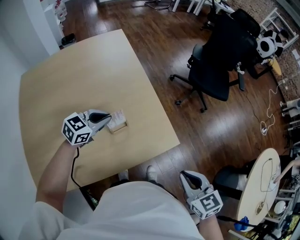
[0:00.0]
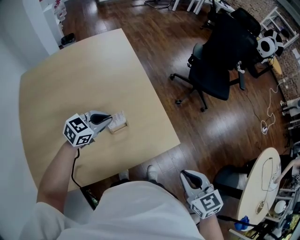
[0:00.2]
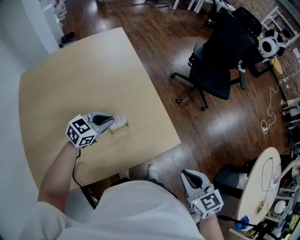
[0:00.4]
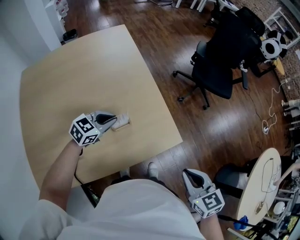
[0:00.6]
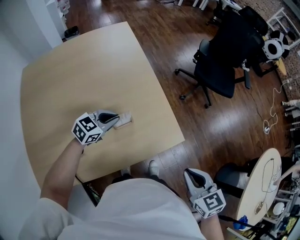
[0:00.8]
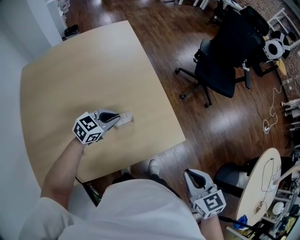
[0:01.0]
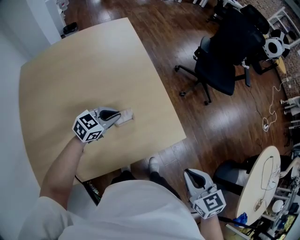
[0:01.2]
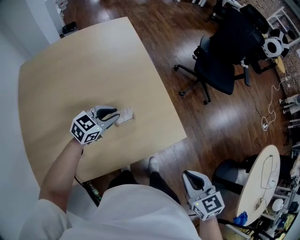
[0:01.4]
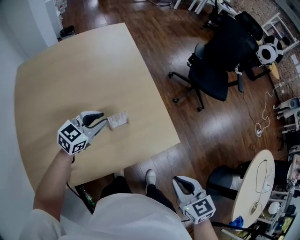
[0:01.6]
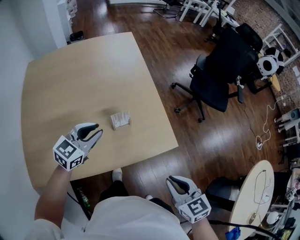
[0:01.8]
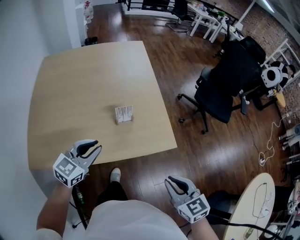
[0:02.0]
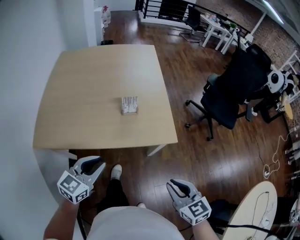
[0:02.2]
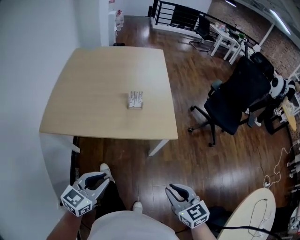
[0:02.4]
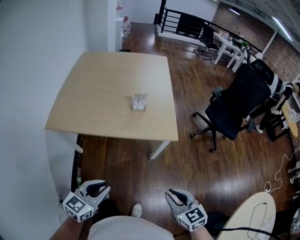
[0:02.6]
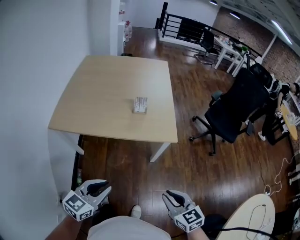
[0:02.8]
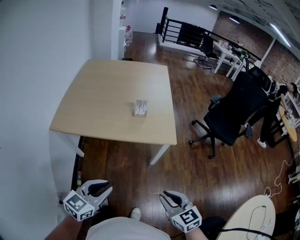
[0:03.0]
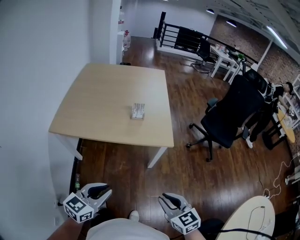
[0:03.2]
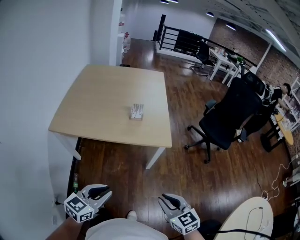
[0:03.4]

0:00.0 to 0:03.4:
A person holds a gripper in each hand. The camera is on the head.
0:00.0 to 0:01.6: The grippers stay close to where they were, moving slightly.
0:01.6 to 0:03.4: The right gripper moves approximately 30 cm, and changes its angle by about 30 degrees; the left gripper moves roughly 60 cm, and swivels about 30 degrees.

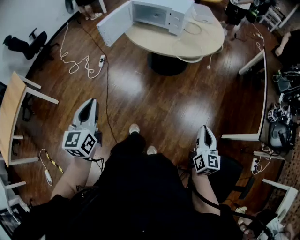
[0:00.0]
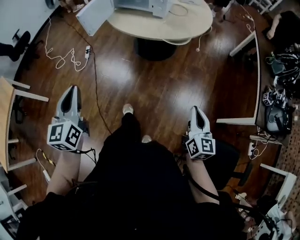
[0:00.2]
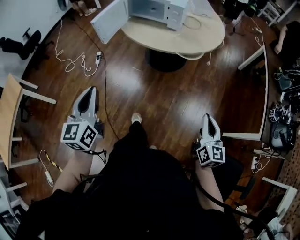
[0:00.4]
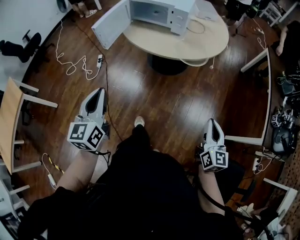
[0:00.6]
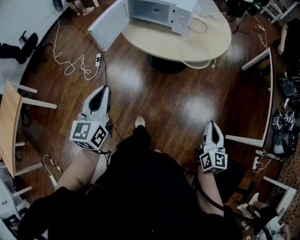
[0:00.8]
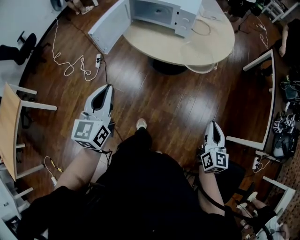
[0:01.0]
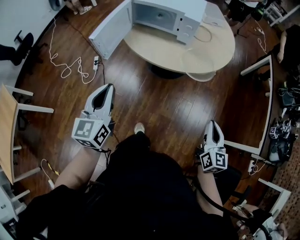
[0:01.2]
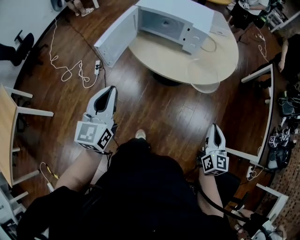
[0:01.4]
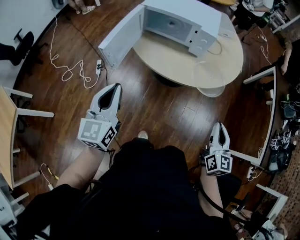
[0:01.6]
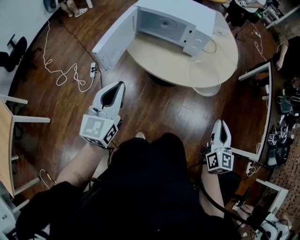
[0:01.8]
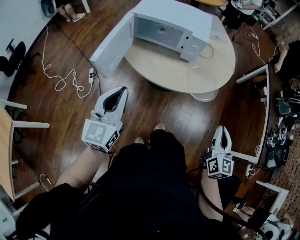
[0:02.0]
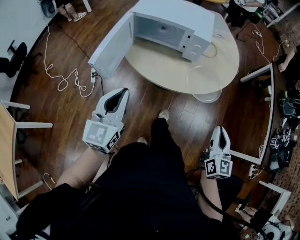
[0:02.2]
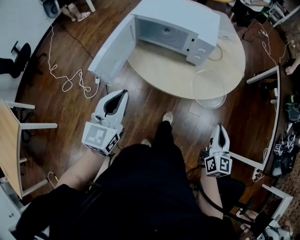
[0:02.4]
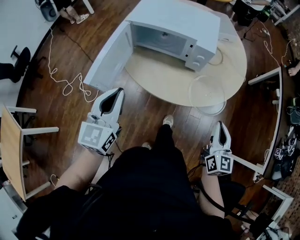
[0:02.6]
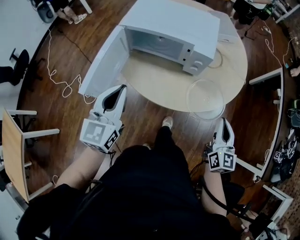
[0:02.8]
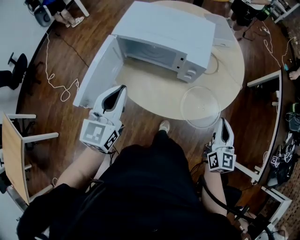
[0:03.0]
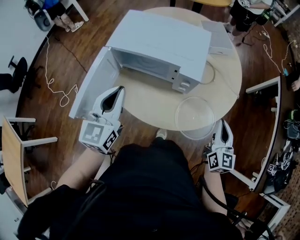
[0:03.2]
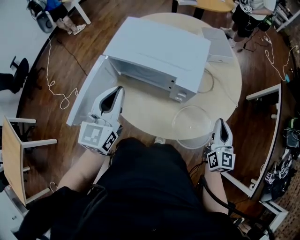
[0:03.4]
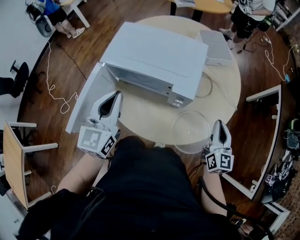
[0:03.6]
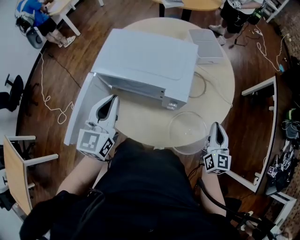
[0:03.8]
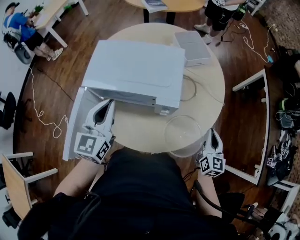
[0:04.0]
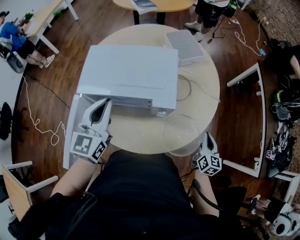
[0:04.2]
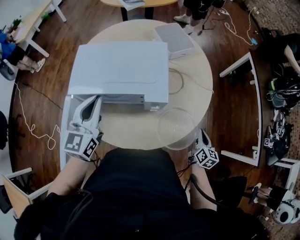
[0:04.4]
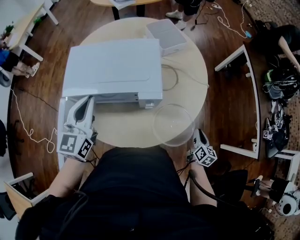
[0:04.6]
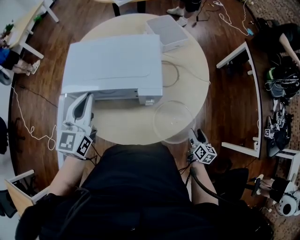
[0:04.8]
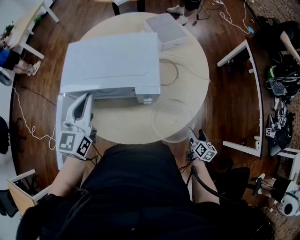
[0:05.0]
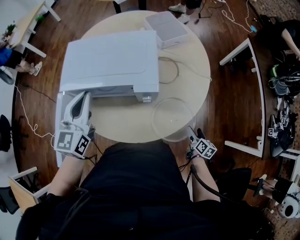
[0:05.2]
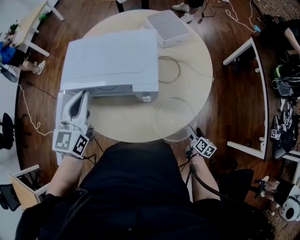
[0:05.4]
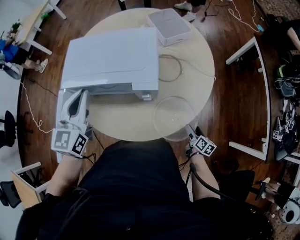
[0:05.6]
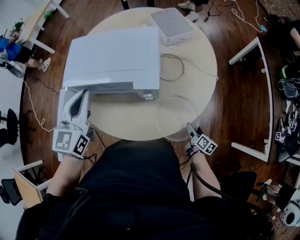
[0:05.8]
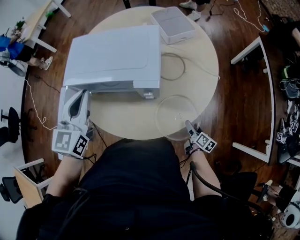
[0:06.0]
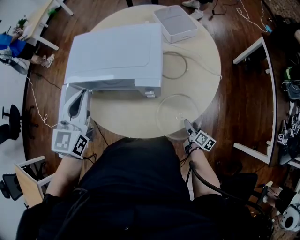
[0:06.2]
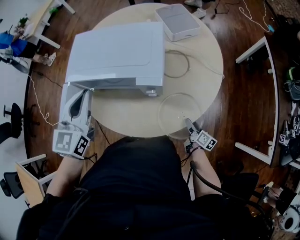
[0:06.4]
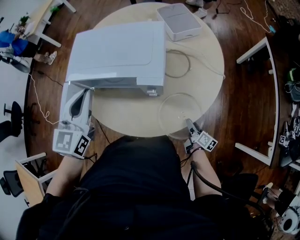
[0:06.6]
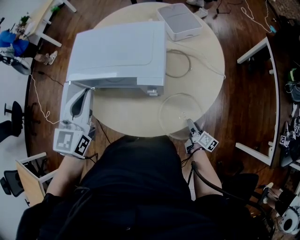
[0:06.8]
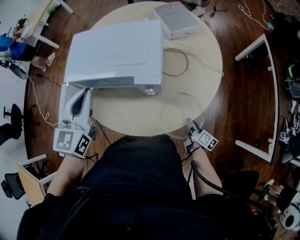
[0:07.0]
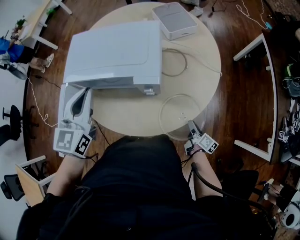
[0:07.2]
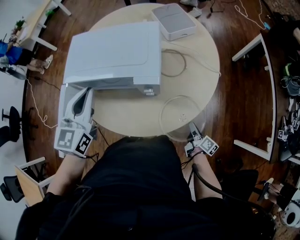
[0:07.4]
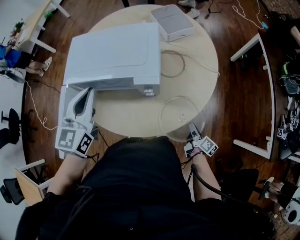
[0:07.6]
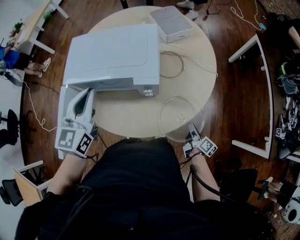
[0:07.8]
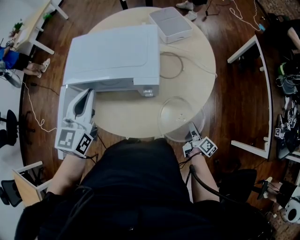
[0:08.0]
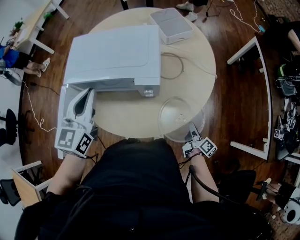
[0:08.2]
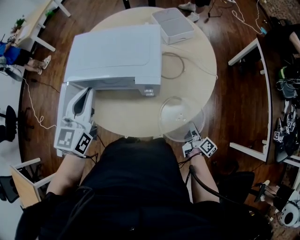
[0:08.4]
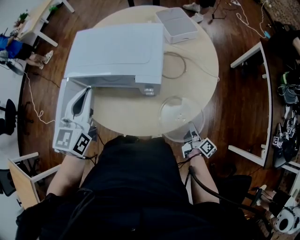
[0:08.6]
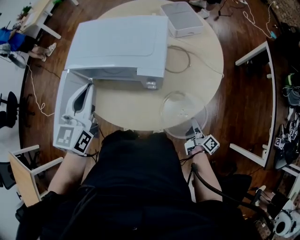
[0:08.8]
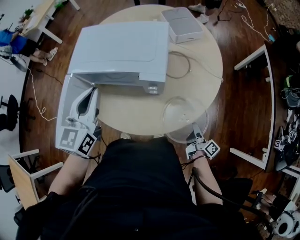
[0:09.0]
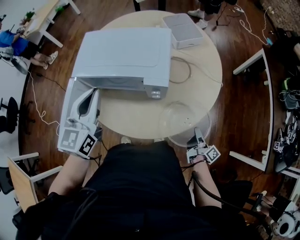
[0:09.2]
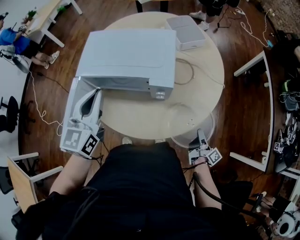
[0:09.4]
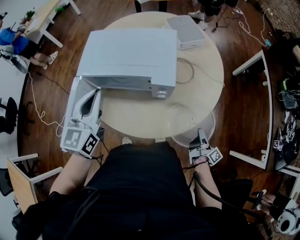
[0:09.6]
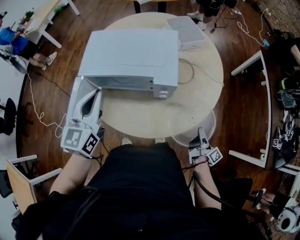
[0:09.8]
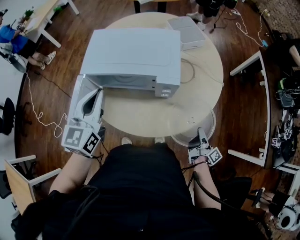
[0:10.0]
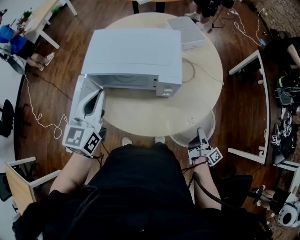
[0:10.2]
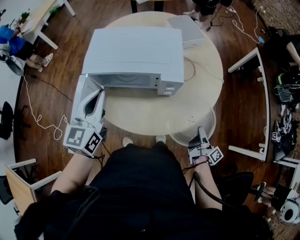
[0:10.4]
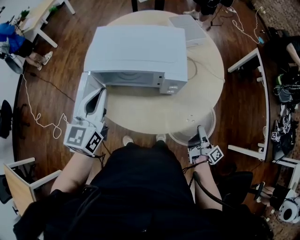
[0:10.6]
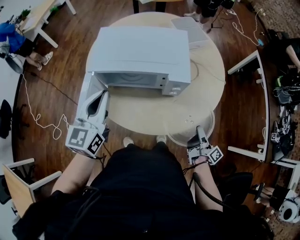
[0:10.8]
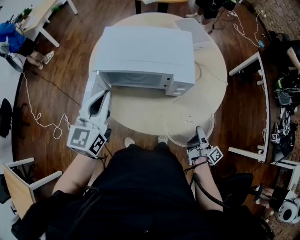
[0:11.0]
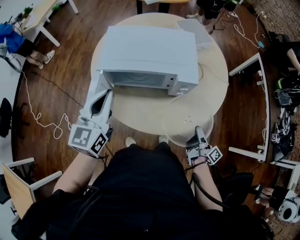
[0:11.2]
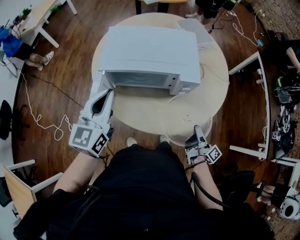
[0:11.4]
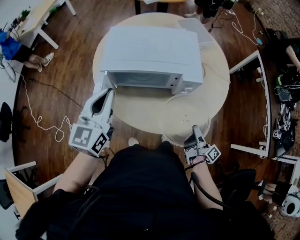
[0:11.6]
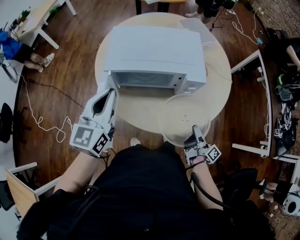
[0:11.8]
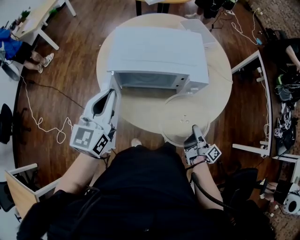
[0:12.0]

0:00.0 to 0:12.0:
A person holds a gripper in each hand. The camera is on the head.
0:00.0 to 0:01.6: The right gripper moves forward and to the left, some 30 cm; the left gripper goes about 30 cm forward.
0:01.6 to 0:03.0: The two grippers go approximately 20 cm forward.
0:03.0 to 0:04.4: The right gripper heads downward and to the right, covering some 15 cm, and turns by approximately 30 degrees; the left gripper goes roughly 15 cm forward.
0:04.4 to 0:06.0: The right gripper goes roughly 15 cm downward, turns by approximately 30 degrees, and opens up.
0:06.0 to 0:07.6: The right gripper closes its fingers.
0:07.6 to 0:09.0: There are only small adjustments of the grippers.
0:09.0 to 0:10.4: The left gripper heads to the left, covering some 5 cm. The right gripper heads upward, covering about 5 cm.
0:10.4 to 0:12.0: The right gripper shifts about 15 cm to the left, while the left gripper shifts approximately 5 cm to the left.

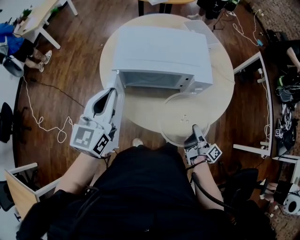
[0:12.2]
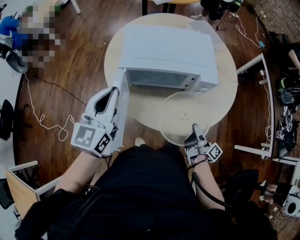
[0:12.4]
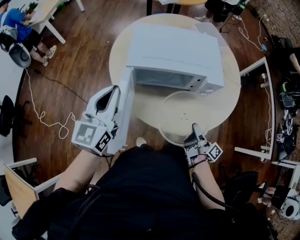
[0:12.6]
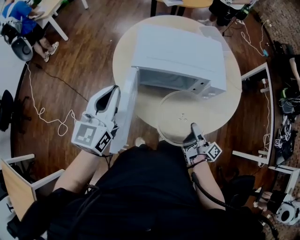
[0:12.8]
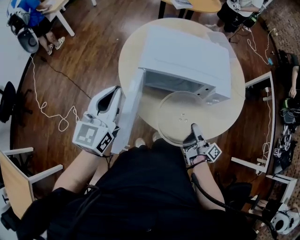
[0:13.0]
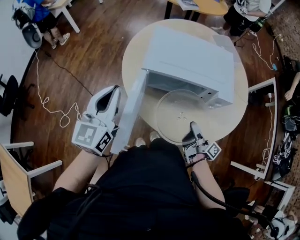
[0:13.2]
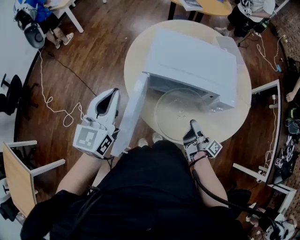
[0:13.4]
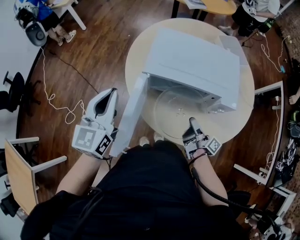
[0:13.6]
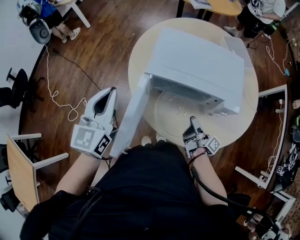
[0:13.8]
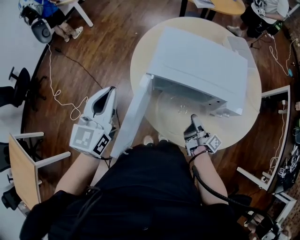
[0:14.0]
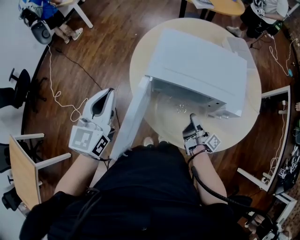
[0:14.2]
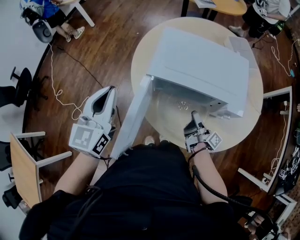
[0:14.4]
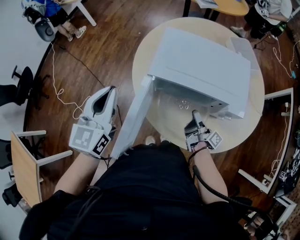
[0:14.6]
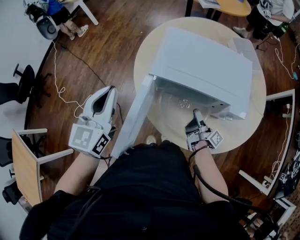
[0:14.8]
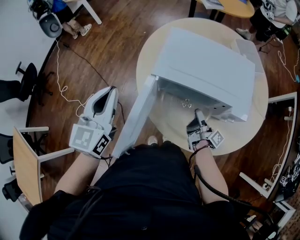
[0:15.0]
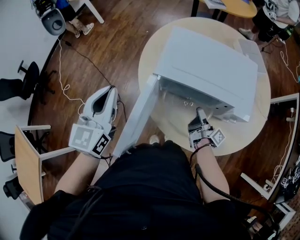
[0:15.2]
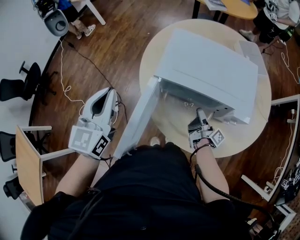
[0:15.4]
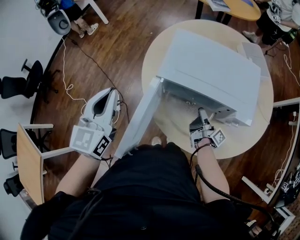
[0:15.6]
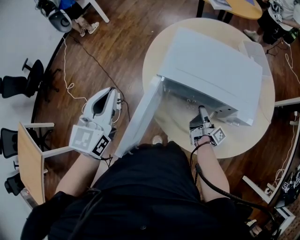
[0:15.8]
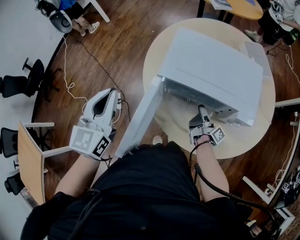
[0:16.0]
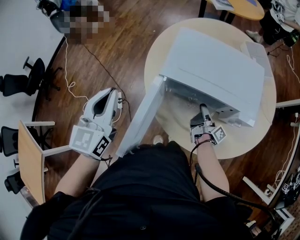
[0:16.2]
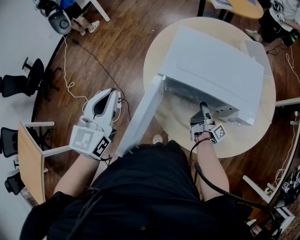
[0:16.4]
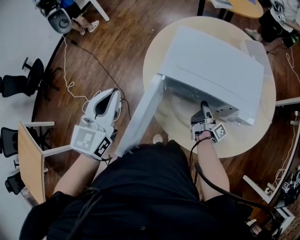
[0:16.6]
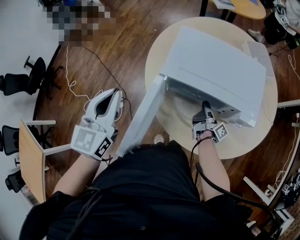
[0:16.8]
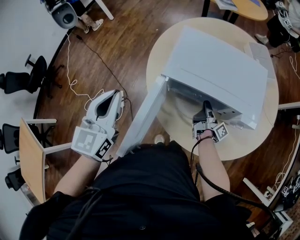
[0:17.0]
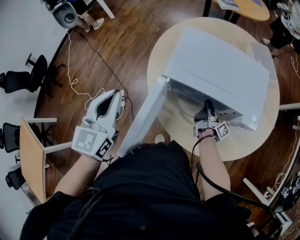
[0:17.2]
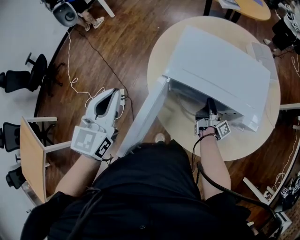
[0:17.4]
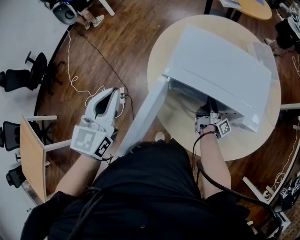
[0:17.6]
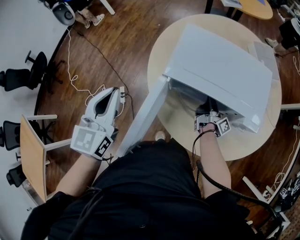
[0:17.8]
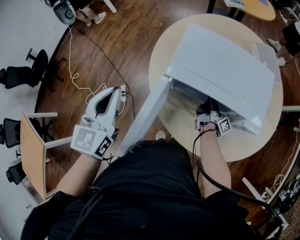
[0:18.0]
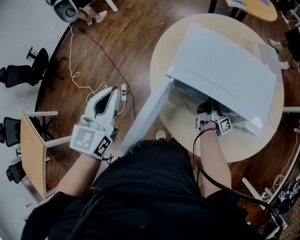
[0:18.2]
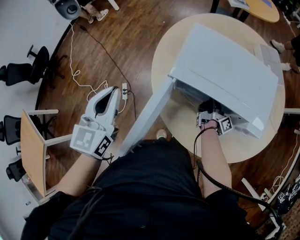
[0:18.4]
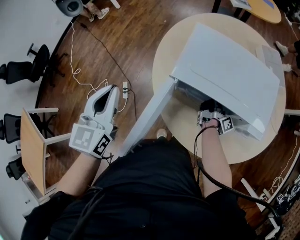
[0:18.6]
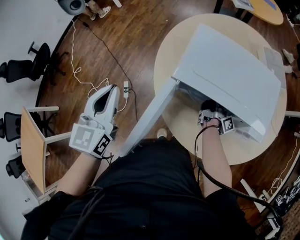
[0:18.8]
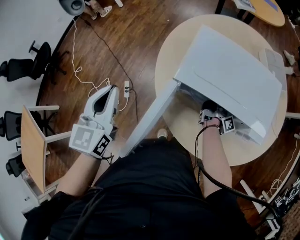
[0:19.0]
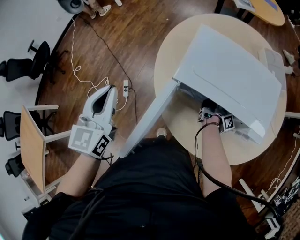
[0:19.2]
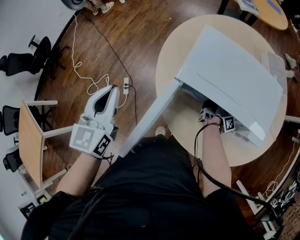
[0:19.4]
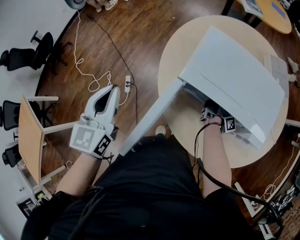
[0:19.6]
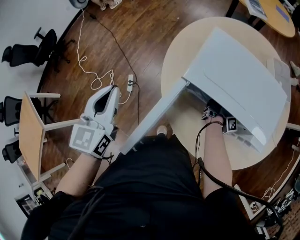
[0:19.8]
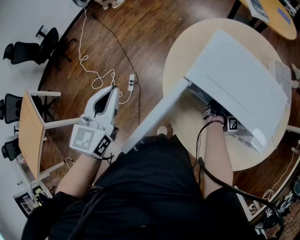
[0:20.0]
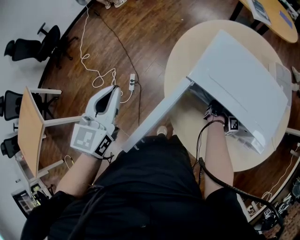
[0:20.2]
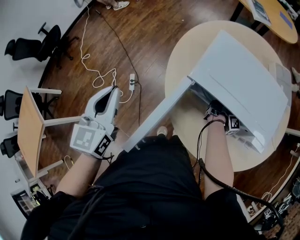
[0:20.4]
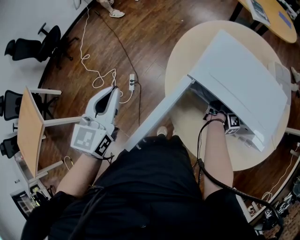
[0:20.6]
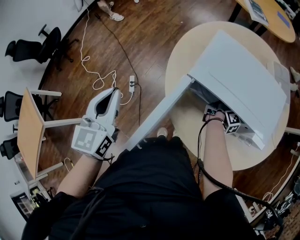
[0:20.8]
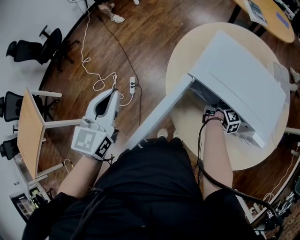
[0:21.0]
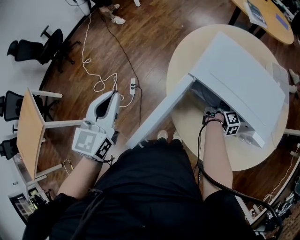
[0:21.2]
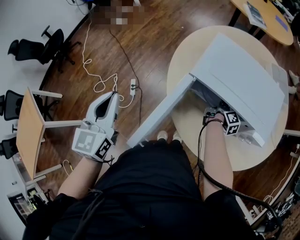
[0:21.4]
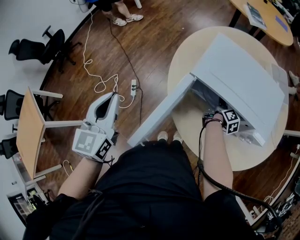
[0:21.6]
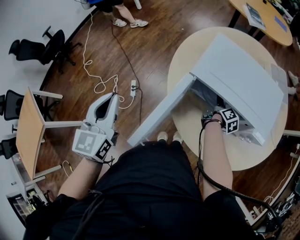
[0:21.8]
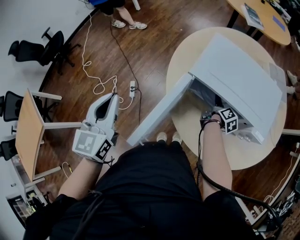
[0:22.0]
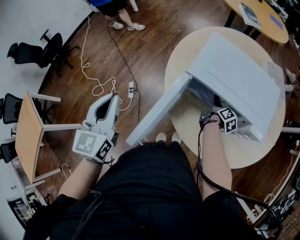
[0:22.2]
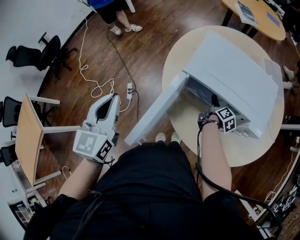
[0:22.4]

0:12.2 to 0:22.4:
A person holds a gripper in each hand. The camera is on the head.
0:12.2 to 0:13.6: The left gripper goes some 10 cm to the left. Meanwhile the right gripper goes approximately 15 cm to the left and forward.
0:13.6 to 0:15.2: The right gripper goes some 5 cm forward.
0:15.2 to 0:16.6: There are only small adjustments of the grippers.
0:16.6 to 0:18.0: The grippers make only small movements.
0:18.0 to 0:19.4: The grippers move only a little.
0:19.4 to 0:21.0: The right gripper turns by about 30 degrees, and opens. The left gripper shifts roughly 5 cm backward.
0:21.0 to 0:22.4: The grippers move only a little.
